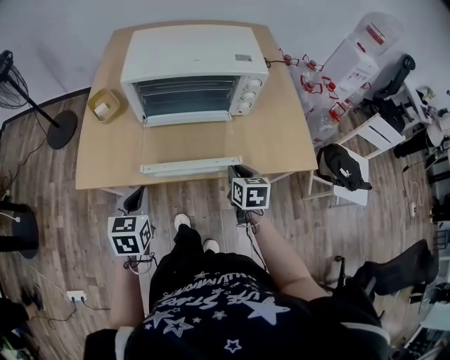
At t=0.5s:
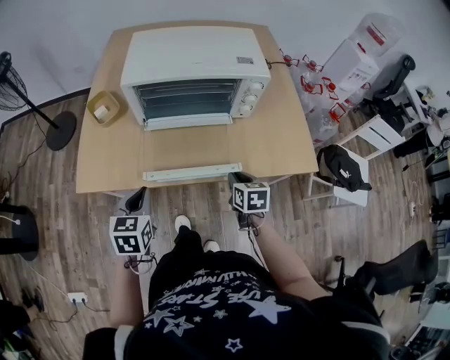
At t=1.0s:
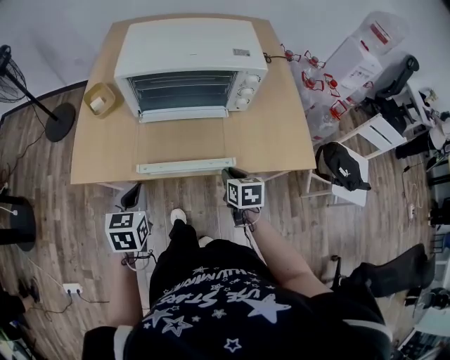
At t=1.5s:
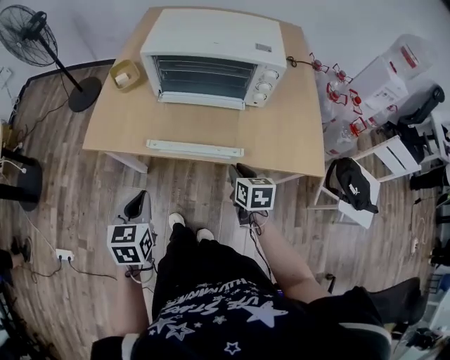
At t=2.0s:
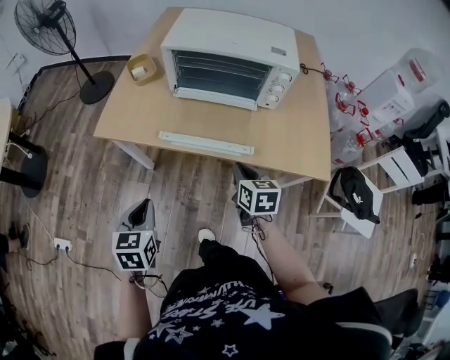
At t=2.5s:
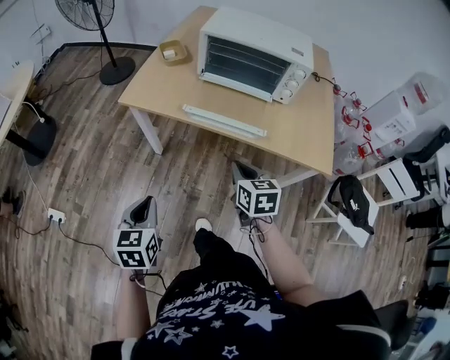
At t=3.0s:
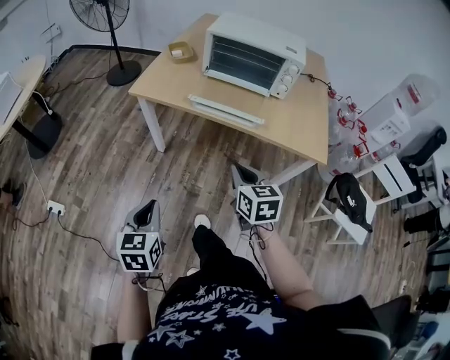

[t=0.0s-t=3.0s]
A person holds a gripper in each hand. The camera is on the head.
t=0.0s to t=1.5s: The left gripper shifts about 10 cm backward.
t=1.5s to t=3.0s: The left gripper shifts some 30 cm backward; the right gripper is displaced backward, to the left and upward by about 25 cm, and rotates roughly 20 degrees.

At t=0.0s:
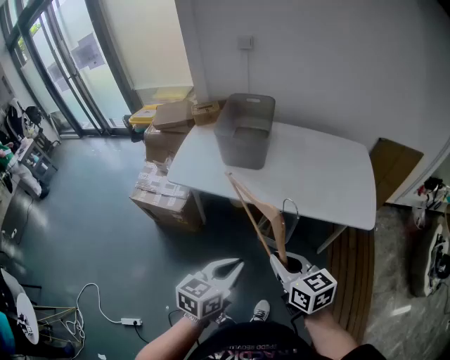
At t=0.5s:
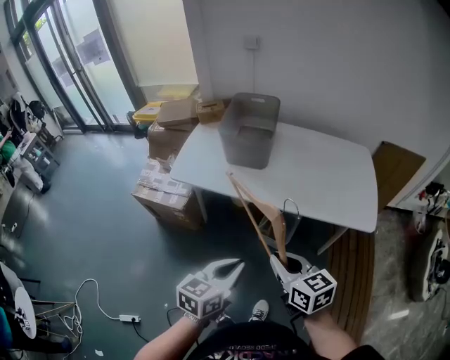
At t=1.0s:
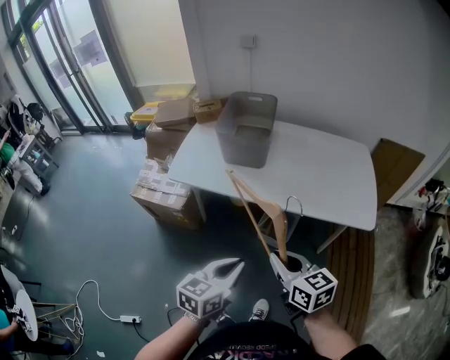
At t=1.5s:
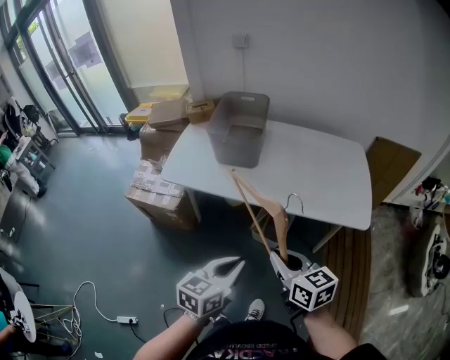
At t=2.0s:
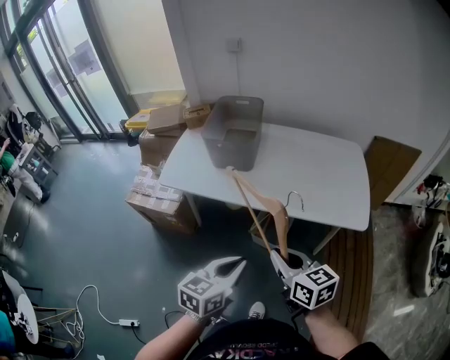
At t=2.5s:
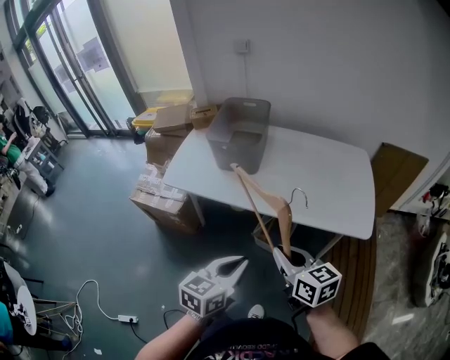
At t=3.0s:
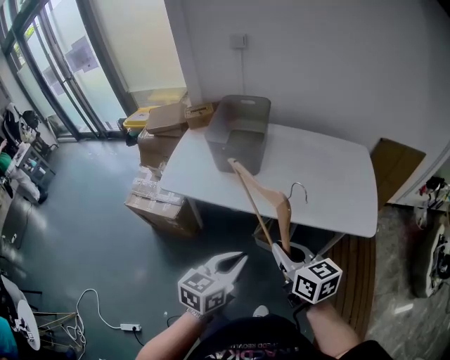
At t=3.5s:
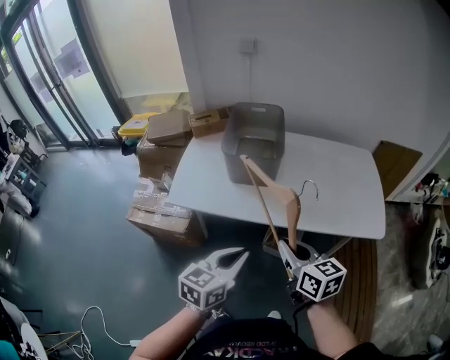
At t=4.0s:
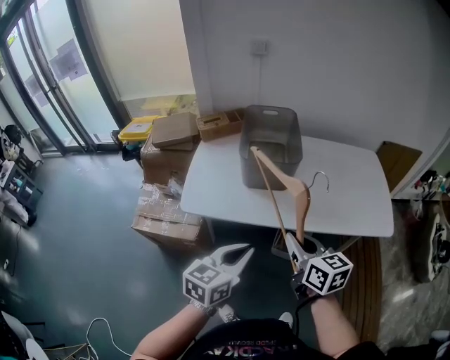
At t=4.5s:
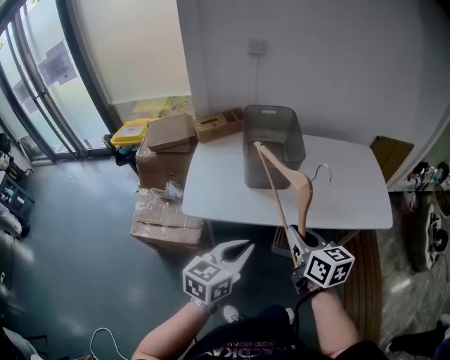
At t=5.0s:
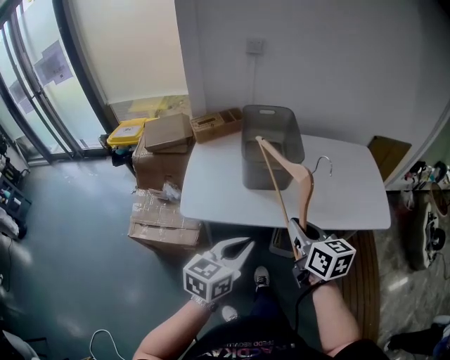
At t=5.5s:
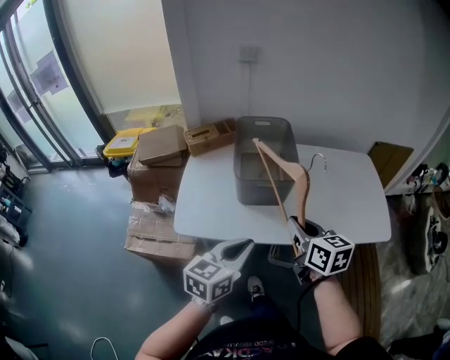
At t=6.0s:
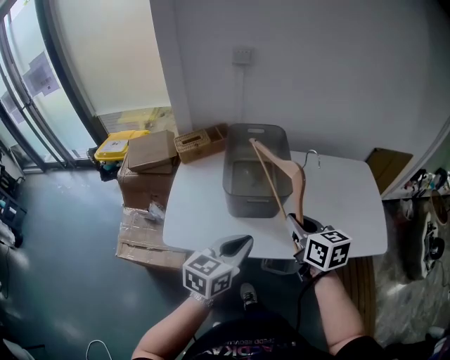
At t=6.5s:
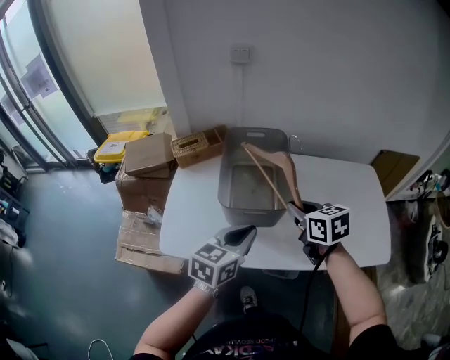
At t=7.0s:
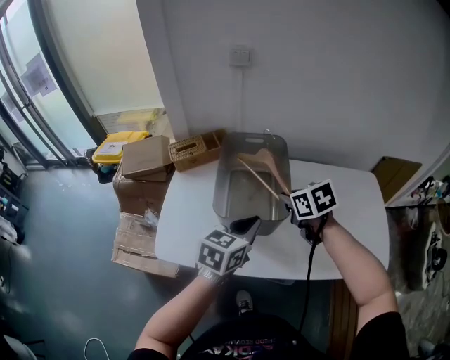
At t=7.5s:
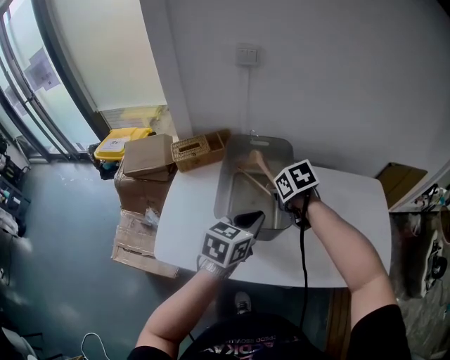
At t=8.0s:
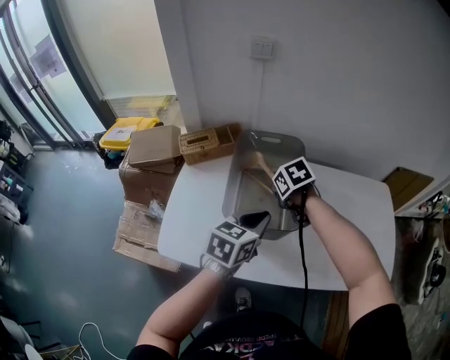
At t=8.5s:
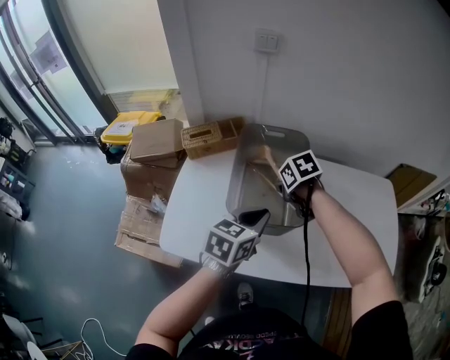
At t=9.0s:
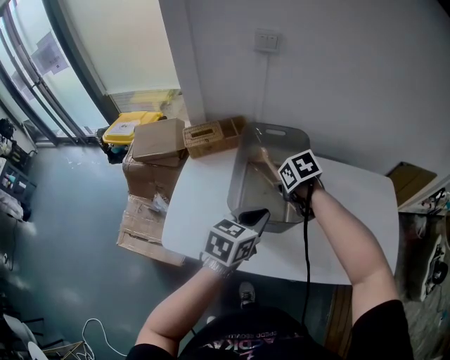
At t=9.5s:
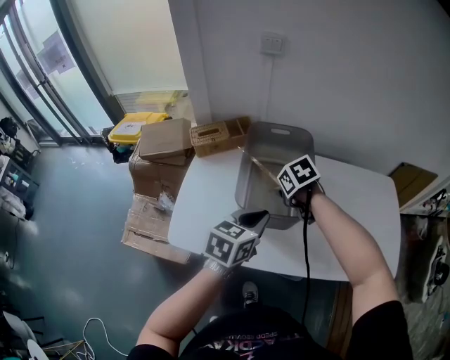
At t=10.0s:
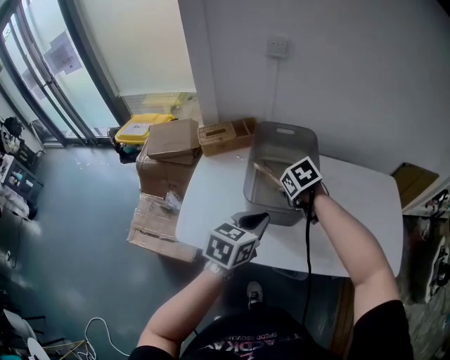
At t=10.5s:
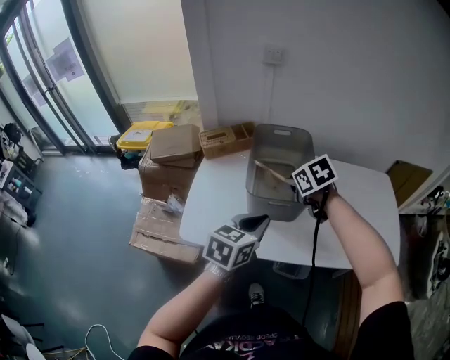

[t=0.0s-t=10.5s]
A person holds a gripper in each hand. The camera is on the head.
t=0.0s to t=2.0s: Both grippers travel together to the right, roughly 5 cm.
t=2.0s to t=4.0s: The grippers both shift to the left and forward by approximately 30 cm.
t=4.0s to t=6.5s: Both grippers travel together forward, approximately 30 cm.
t=6.5s to t=8.5s: The right gripper is displaced forward and downward by roughly 20 cm, and angles its fingers downward, by some 30 degrees. Meanwhile the left gripper is displaced forward by roughly 10 cm.
t=8.5s to t=10.5s: The left gripper shifts approximately 15 cm backward and to the left. Meanwhile the right gripper shifts roughly 15 cm backward and upward.

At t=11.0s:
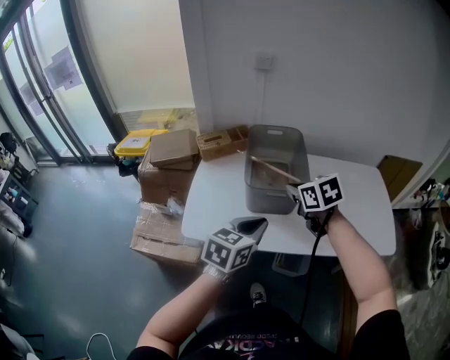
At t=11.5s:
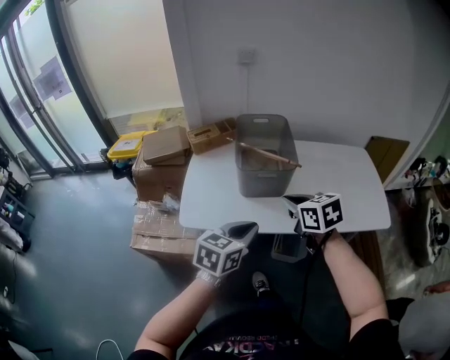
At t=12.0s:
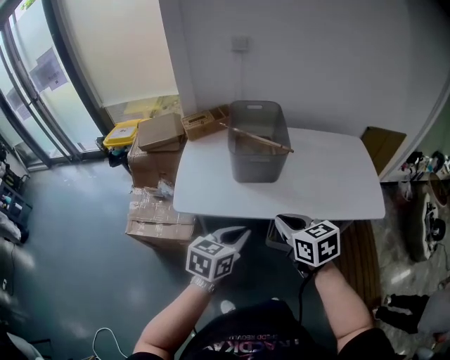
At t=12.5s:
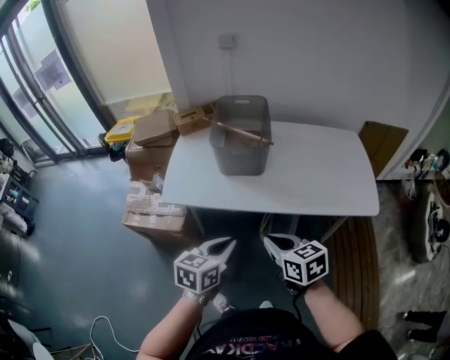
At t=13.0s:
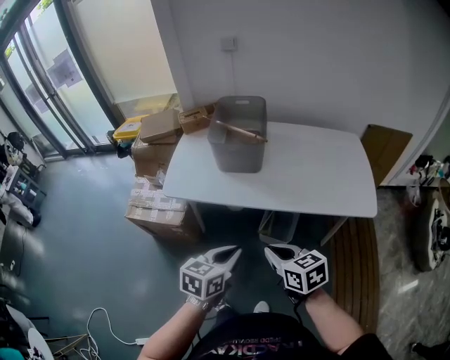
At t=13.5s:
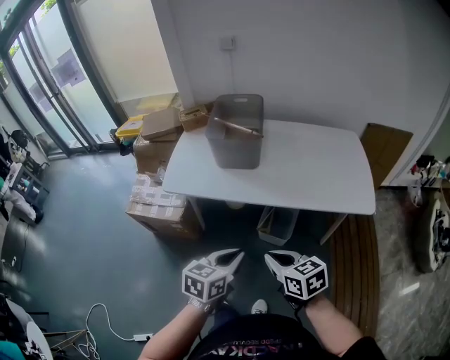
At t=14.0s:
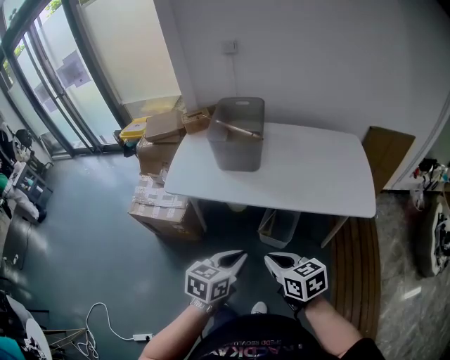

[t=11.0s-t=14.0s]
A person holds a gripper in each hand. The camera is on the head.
t=11.0s to t=12.5s: The right gripper moves backward, roughly 30 cm, while the left gripper shifts roughly 20 cm backward.
t=12.5s to t=14.0s: Both grippers travel together backward and to the right, about 15 cm.

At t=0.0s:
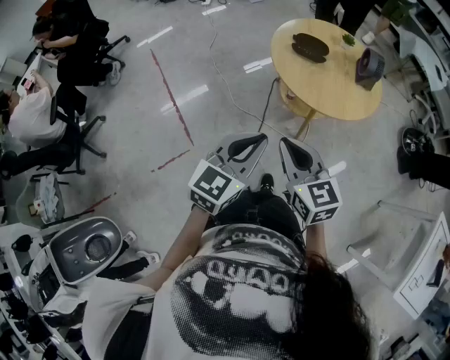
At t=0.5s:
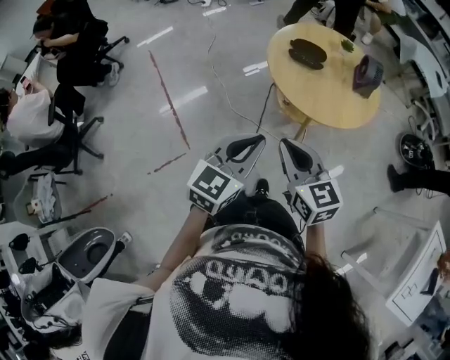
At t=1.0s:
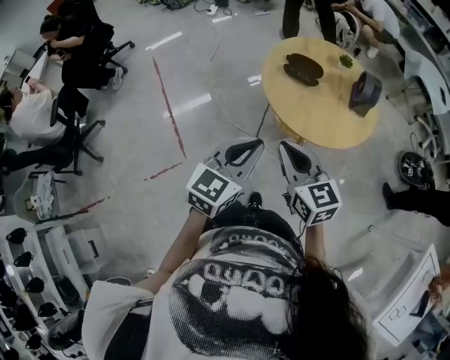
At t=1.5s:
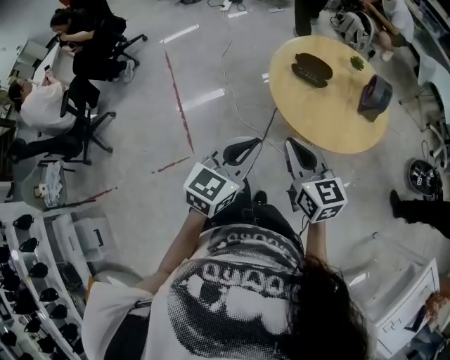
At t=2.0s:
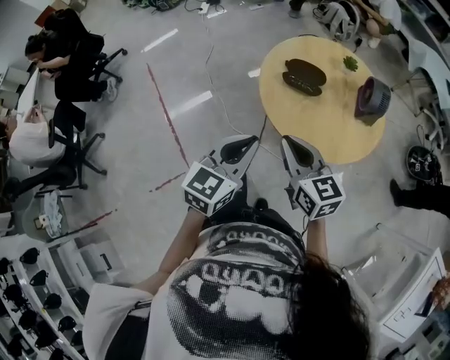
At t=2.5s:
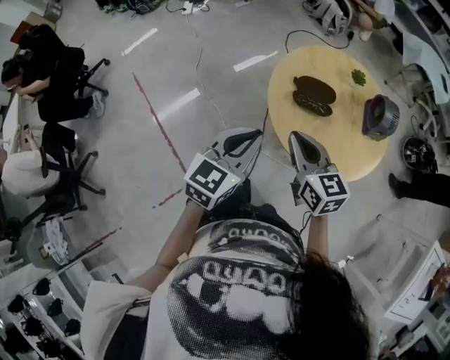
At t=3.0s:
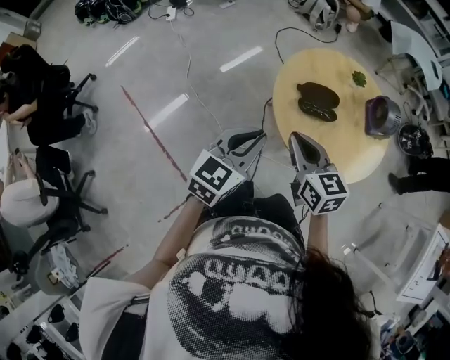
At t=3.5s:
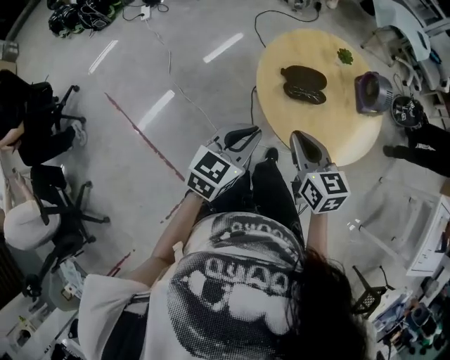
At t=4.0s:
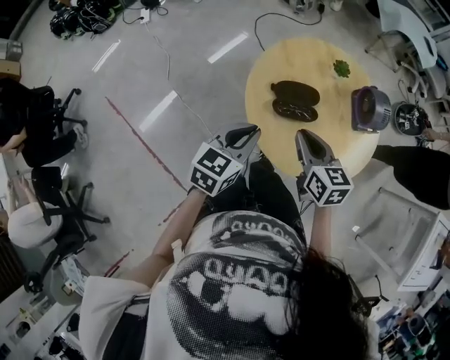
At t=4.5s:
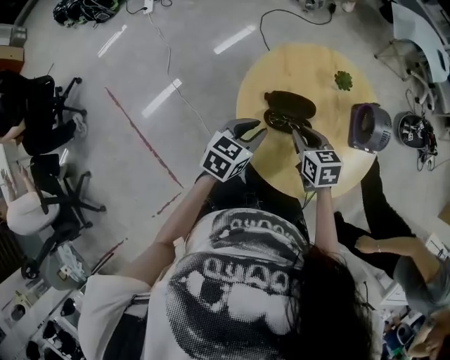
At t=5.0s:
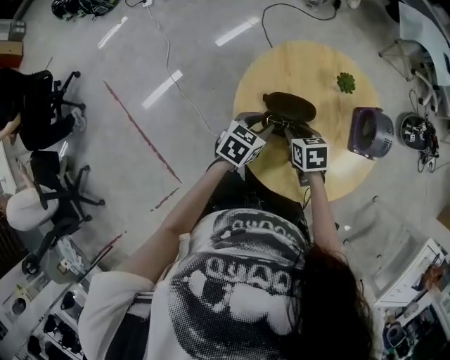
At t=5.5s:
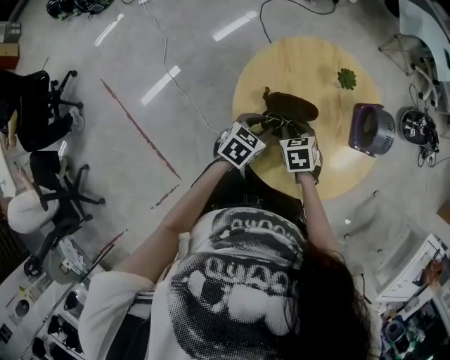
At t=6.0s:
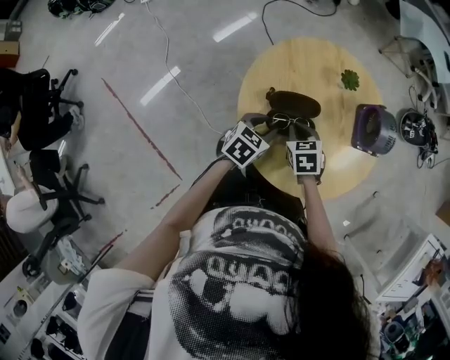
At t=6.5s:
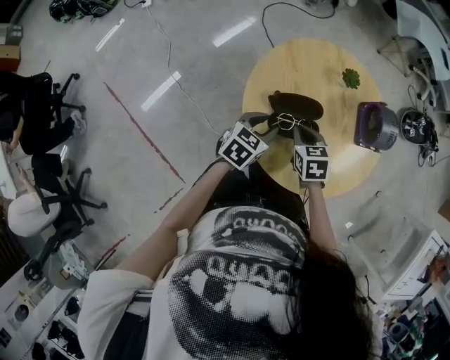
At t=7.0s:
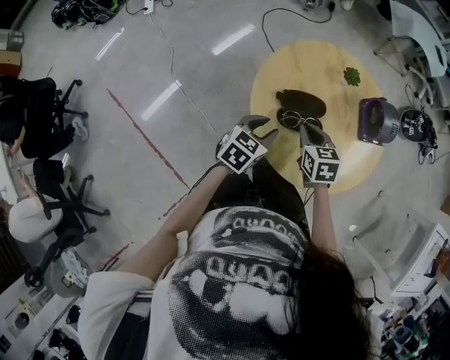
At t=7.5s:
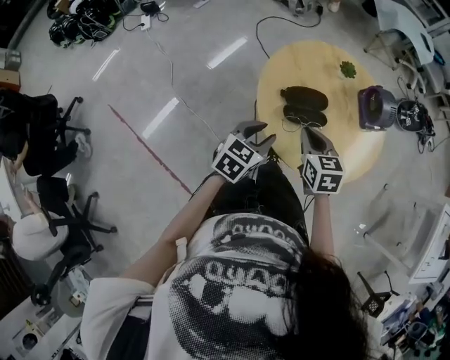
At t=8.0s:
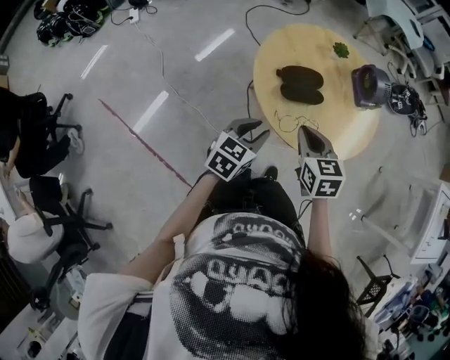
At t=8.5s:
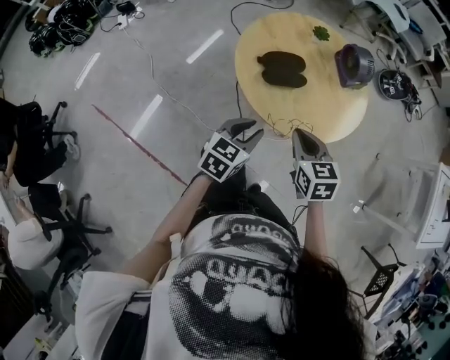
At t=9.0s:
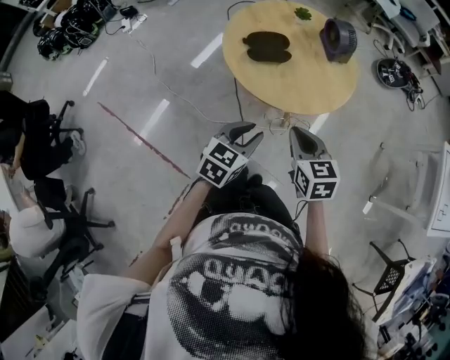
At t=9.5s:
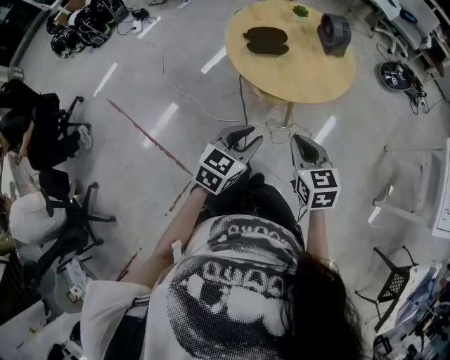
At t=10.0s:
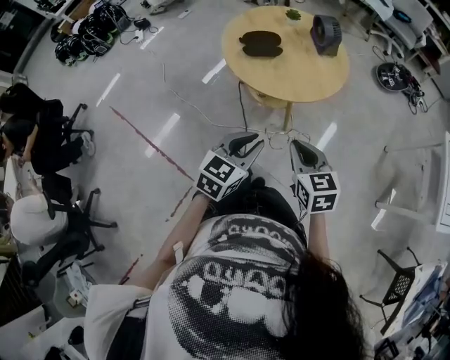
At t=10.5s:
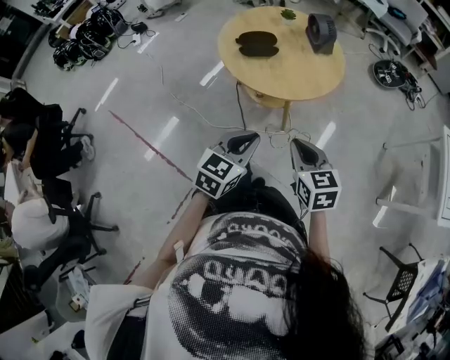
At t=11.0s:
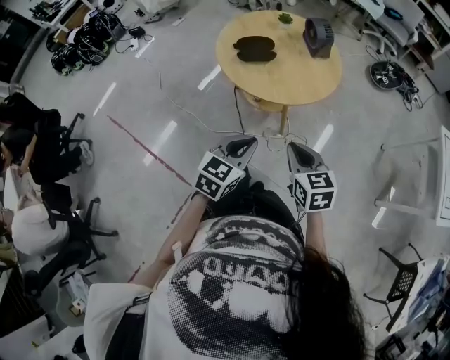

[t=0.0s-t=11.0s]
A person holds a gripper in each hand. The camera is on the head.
t=0.0s to t=2.0s: The grippers both shift forward by approximately 20 cm.
t=2.0s to t=3.5s: The grippers both shift forward and to the left by roughly 15 cm. The left gripper turns by some 20 degrees. The right gripper swivels some 30 degrees.
t=3.5s to t=5.5s: The two grippers go approximately 30 cm downward, forward and to the right. The right gripper angles its fingers downward, by some 40 degrees, and opens its fingers; the left gripper changes its angle by approximately 20 degrees, and opens up.
t=5.5s to t=7.5s: The right gripper moves upward and backward, roughly 15 cm, turns by roughly 30 degrees, and closes up. The left gripper goes roughly 15 cm upward, backward and to the left.
t=7.5s to t=9.0s: The grippers both shift backward and to the right by roughly 25 cm.
t=9.0s to t=11.0s: The right gripper shifts roughly 10 cm backward and to the right. Meanwhile the left gripper travels backward by some 10 cm, and closes up.
